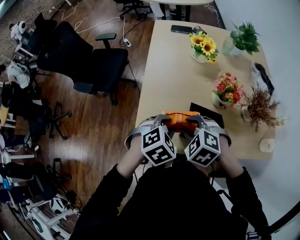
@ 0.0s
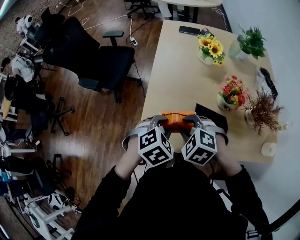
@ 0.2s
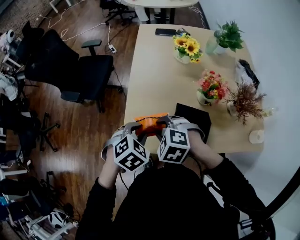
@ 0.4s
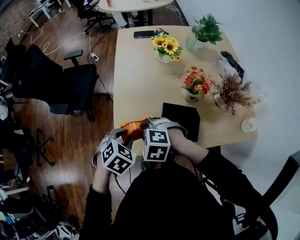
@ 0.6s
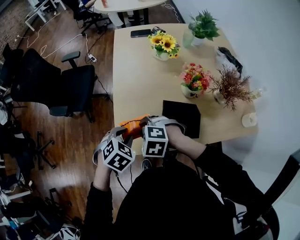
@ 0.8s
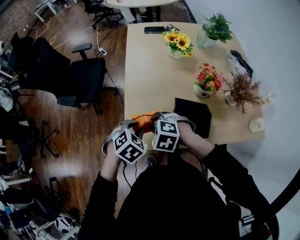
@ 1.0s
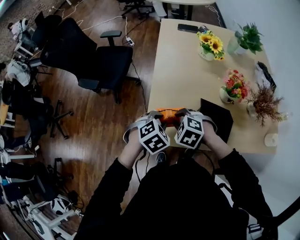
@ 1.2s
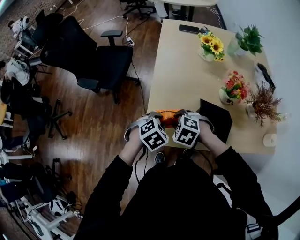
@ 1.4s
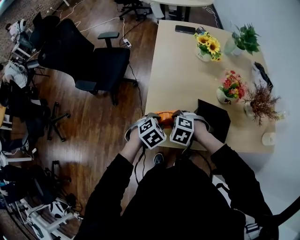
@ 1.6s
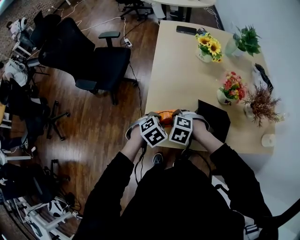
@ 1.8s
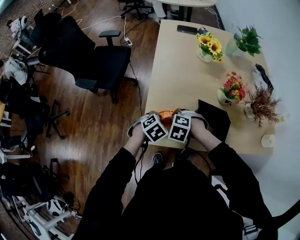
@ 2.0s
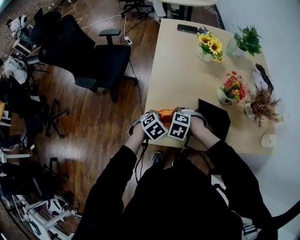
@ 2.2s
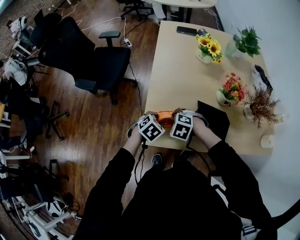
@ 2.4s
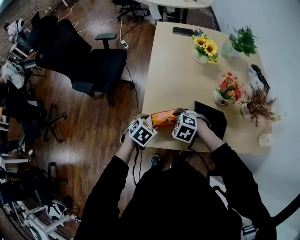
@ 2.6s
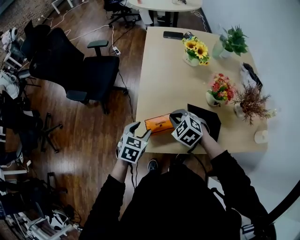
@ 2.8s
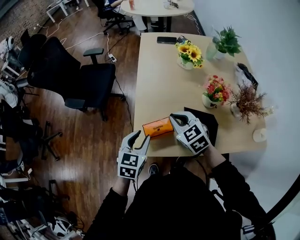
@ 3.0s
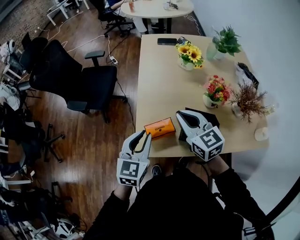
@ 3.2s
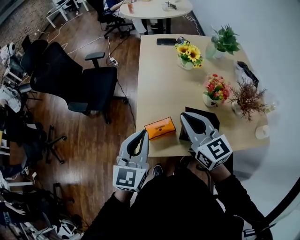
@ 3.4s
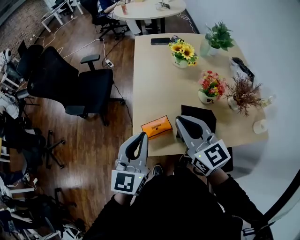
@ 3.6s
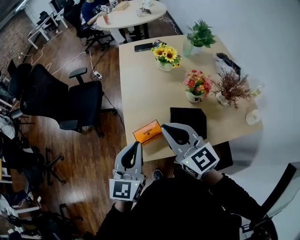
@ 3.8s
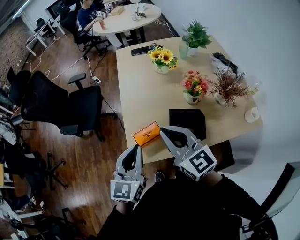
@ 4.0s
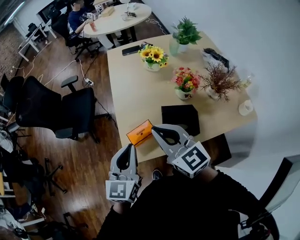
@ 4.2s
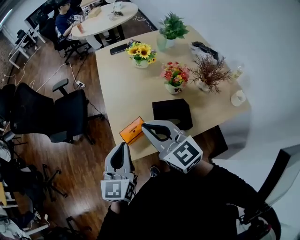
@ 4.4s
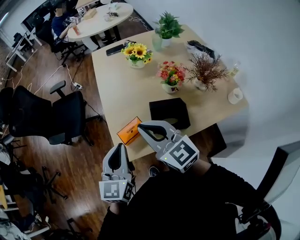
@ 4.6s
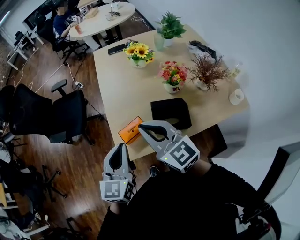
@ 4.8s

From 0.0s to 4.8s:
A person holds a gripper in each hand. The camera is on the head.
From 0.0s to 1.6s: Both grippers travel together downward and to the left, roughly 15 cm.
From 1.6s to 3.2s: The grippers both shift upward by about 20 cm. The left gripper tips its fingers upward by about 40 degrees, and opens, then closes again; the right gripper tips its fingers upward by about 50 degrees, and closes its fingers.
From 3.2s to 4.8s: The left gripper travels upward and backward by approximately 10 cm; the right gripper is displaced backward and upward by about 10 cm.

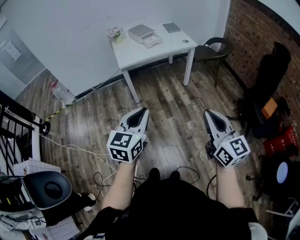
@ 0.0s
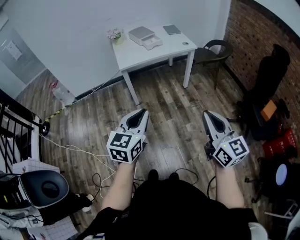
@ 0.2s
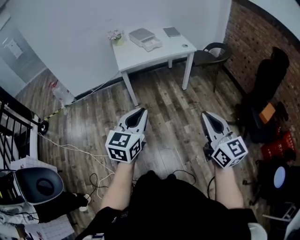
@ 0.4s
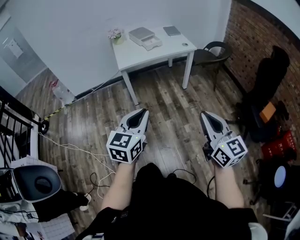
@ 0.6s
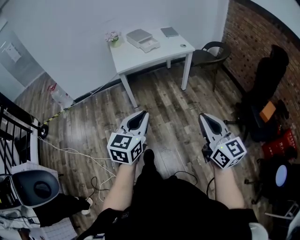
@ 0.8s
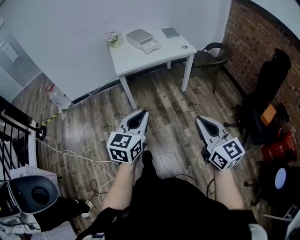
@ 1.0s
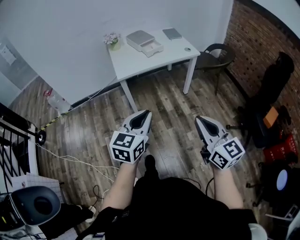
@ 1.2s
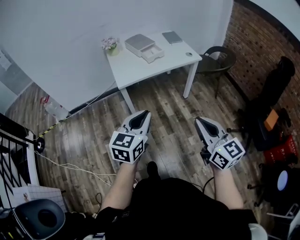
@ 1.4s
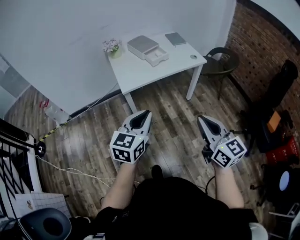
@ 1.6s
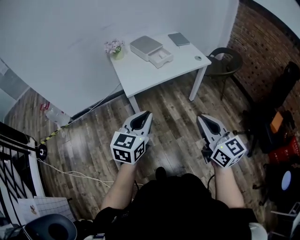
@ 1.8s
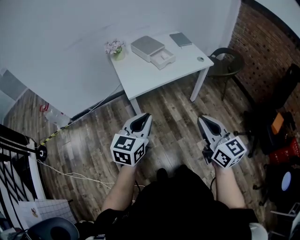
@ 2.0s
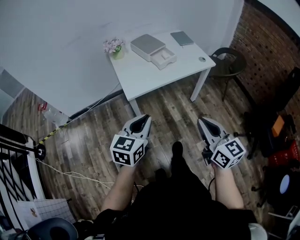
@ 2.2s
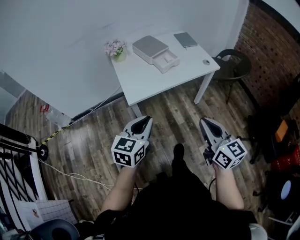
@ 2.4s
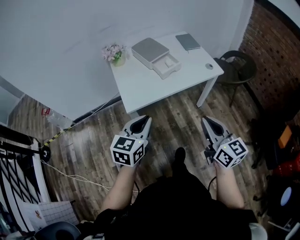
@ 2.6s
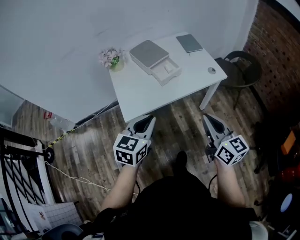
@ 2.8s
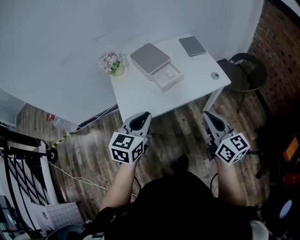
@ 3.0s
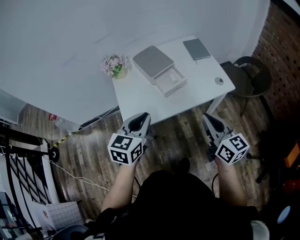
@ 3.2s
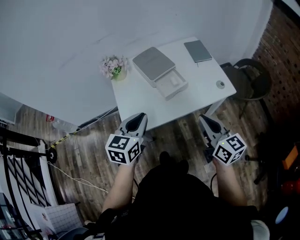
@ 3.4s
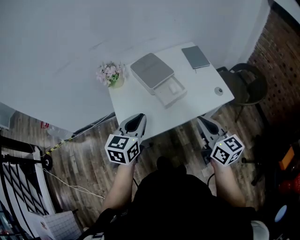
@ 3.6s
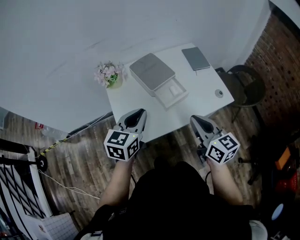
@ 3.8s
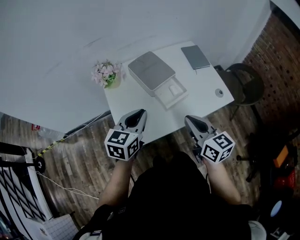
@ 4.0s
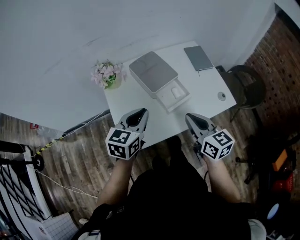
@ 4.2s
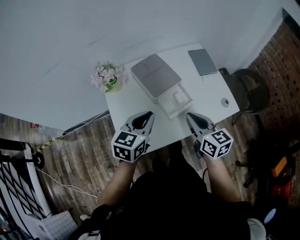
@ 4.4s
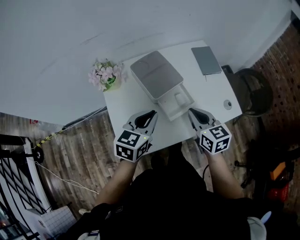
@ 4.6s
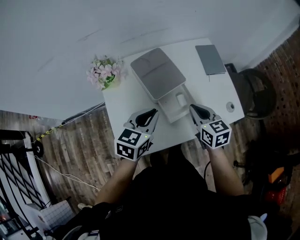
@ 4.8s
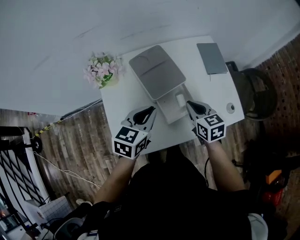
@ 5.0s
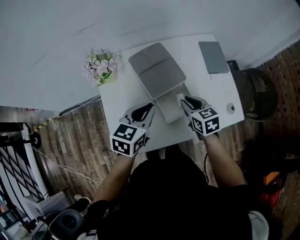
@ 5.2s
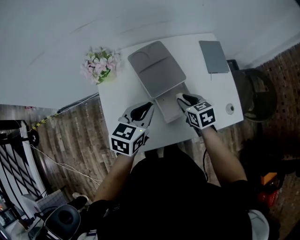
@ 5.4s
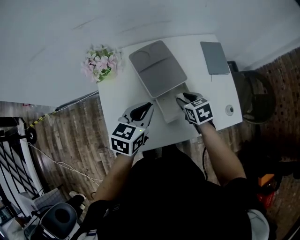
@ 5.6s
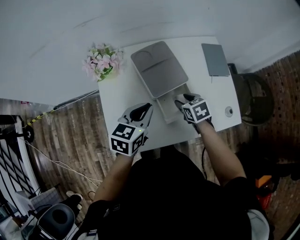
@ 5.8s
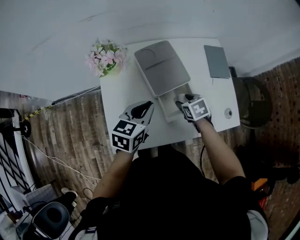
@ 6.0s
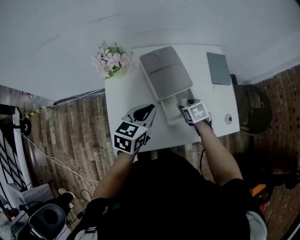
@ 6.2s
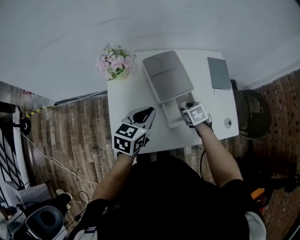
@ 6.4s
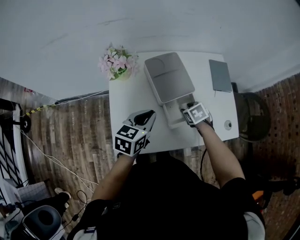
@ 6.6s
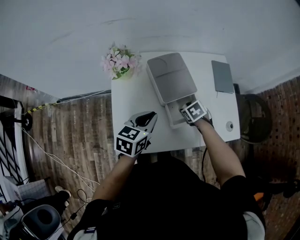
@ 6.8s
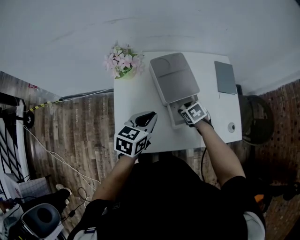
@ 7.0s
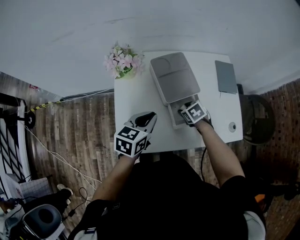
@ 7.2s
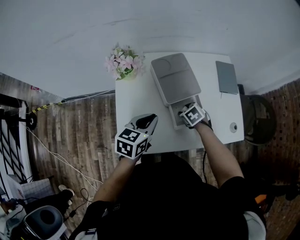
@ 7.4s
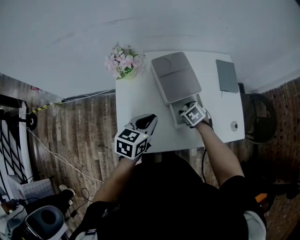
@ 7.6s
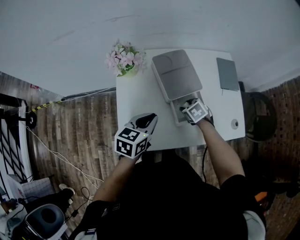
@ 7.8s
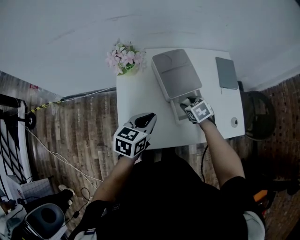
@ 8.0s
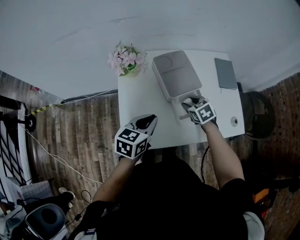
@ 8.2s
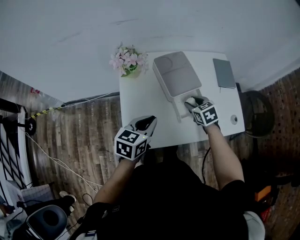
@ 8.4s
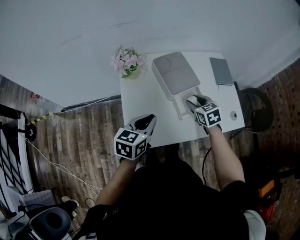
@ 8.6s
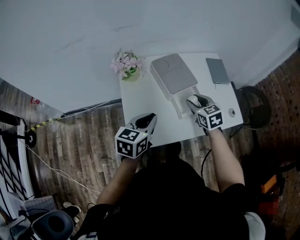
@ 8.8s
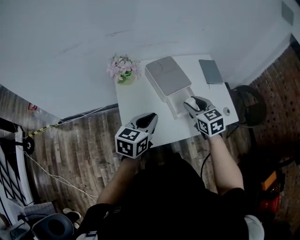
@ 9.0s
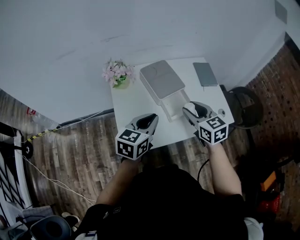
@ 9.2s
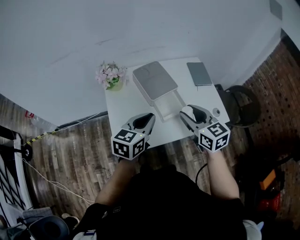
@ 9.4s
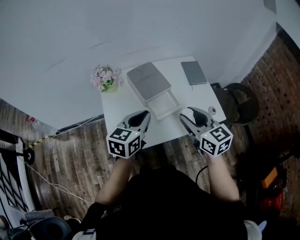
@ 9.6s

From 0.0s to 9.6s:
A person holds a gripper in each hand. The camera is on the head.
From 0.0s to 1.6s: The right gripper is displaced forward and to the left by roughly 25 cm. Meanwhile the left gripper heads forward, covering roughly 25 cm.
From 1.6s to 3.2s: Both grippers move forward, roughly 40 cm.
From 3.2s to 4.8s: The right gripper is displaced forward and downward by roughly 30 cm, and swivels about 30 degrees. Meanwhile the left gripper moves forward, roughly 25 cm.
From 4.8s to 6.4s: The left gripper ends up approximately 5 cm from where it was; the right gripper moves downward, some 15 cm, angles its fingers downward, by some 40 degrees, and opens up.
From 6.4s to 8.0s: The left gripper moves approximately 5 cm, while the right gripper heads to the left, covering approximately 5 cm.
From 8.0s to 9.6s: The right gripper is displaced upward and backward by about 30 cm, and tips its fingers upward by some 40 degrees. The left gripper moves upward, to the right and backward, some 15 cm.

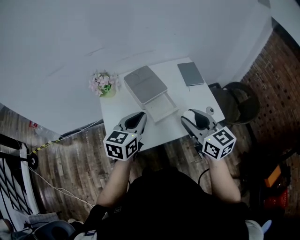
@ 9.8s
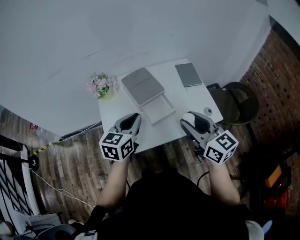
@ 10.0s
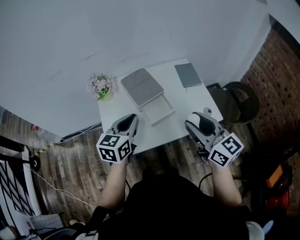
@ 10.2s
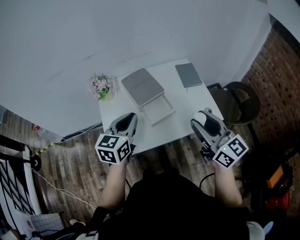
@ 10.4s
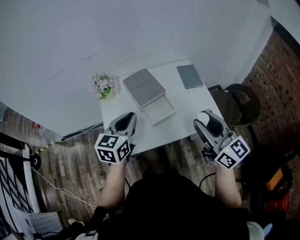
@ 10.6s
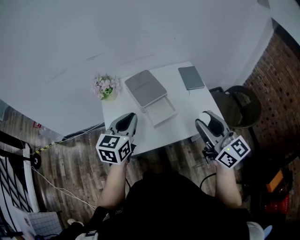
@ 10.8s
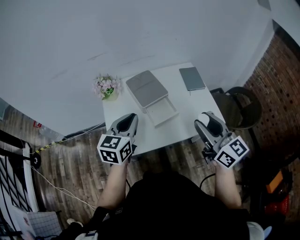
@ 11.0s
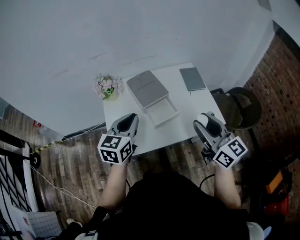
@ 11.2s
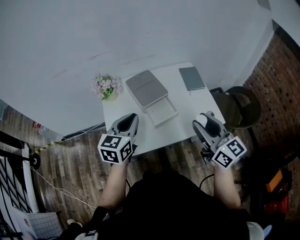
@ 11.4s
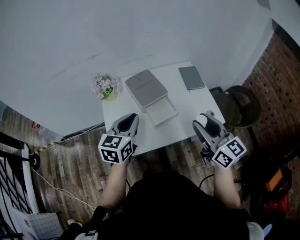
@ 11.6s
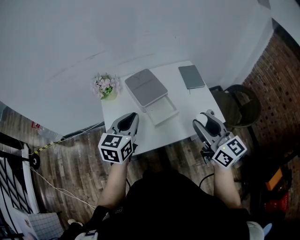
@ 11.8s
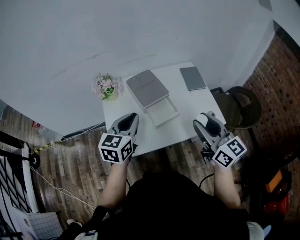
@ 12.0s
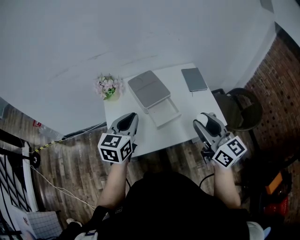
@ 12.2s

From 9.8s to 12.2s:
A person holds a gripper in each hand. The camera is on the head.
From 9.8s to 11.0s: The right gripper moves upward, approximately 5 cm.
From 11.0s to 12.2s: The grippers move only a little.

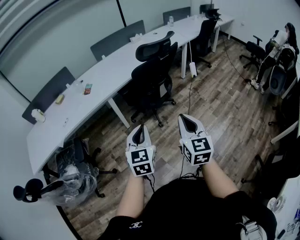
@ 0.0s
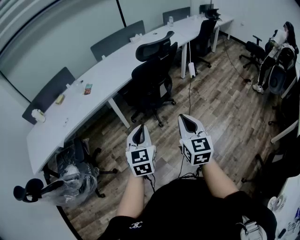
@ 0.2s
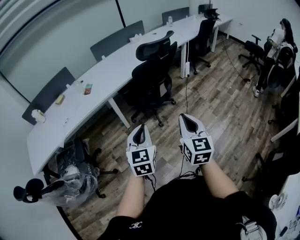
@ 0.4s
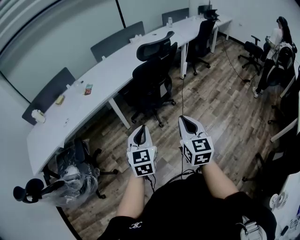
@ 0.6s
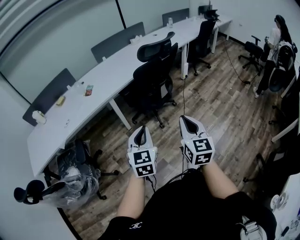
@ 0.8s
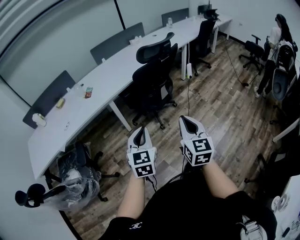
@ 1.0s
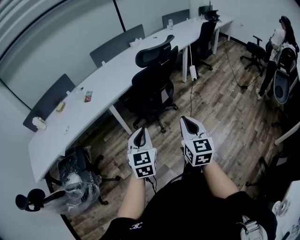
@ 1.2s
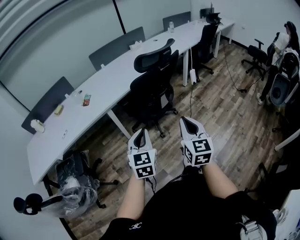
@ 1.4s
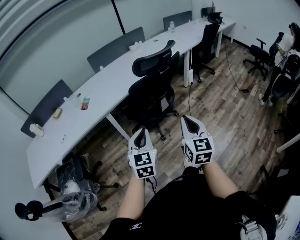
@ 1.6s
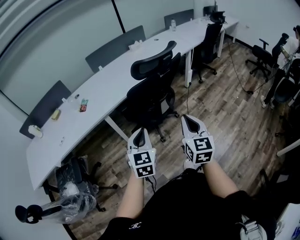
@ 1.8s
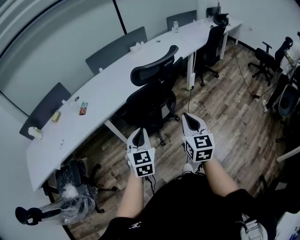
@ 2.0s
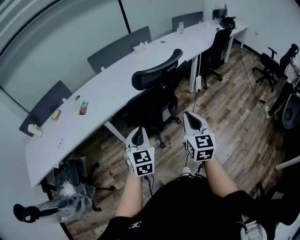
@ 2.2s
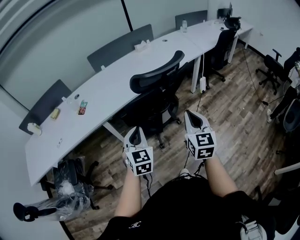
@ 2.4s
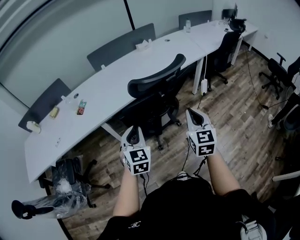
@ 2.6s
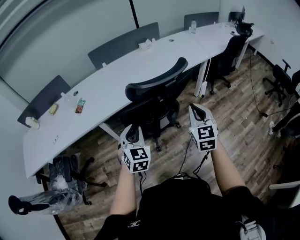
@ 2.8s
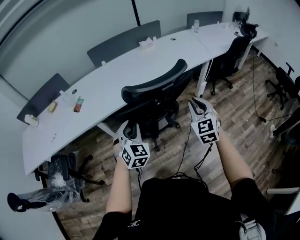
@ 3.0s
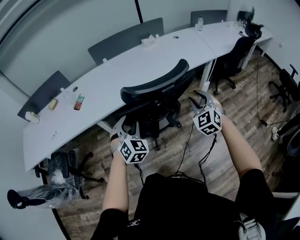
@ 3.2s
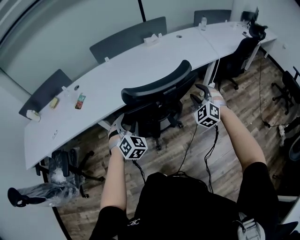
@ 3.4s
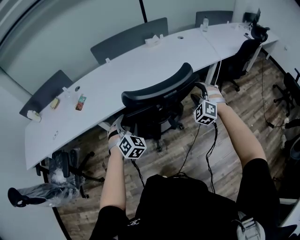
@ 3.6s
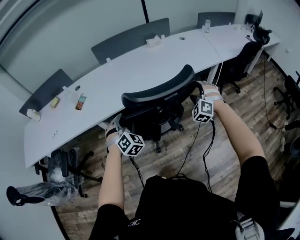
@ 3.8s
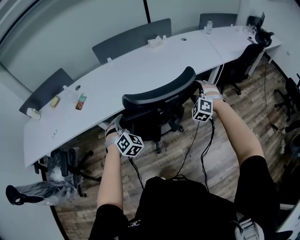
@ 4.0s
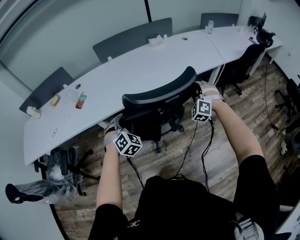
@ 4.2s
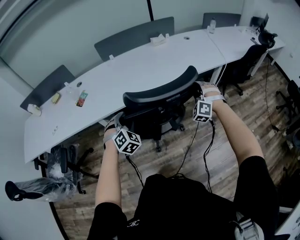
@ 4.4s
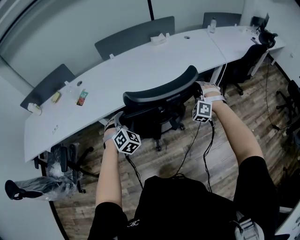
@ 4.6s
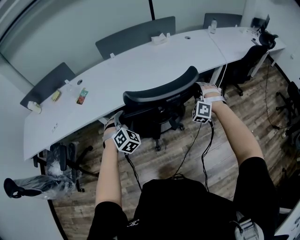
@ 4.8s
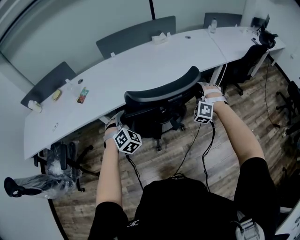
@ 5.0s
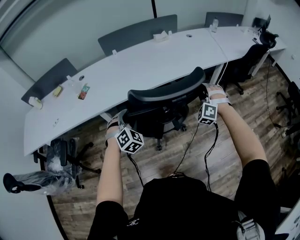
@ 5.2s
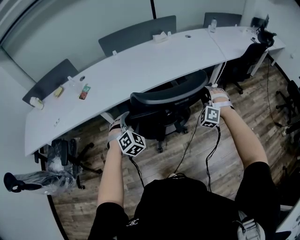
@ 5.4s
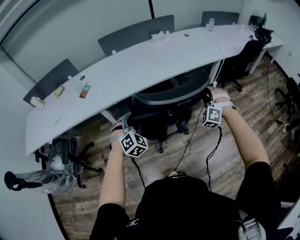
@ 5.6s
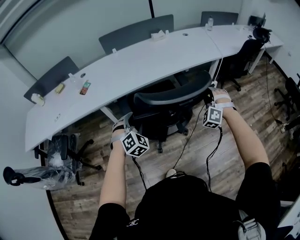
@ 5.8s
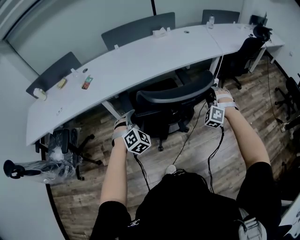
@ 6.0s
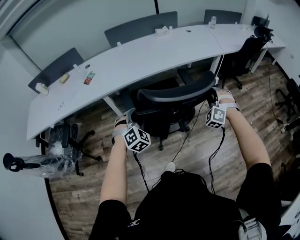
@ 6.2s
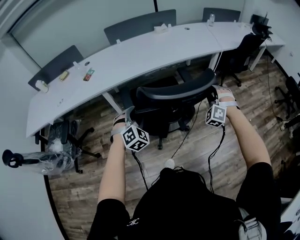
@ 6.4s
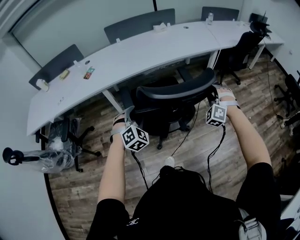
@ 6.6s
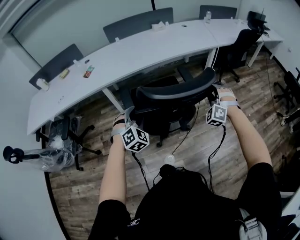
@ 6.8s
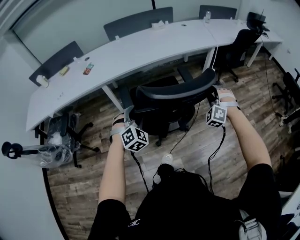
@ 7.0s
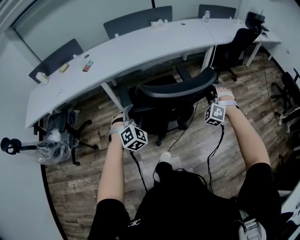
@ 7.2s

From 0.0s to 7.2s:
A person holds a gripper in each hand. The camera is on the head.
From 0.0s to 1.4s: Both grippers move forward, some 10 cm.
From 1.4s to 2.8s: The right gripper goes some 40 cm forward and to the right. Meanwhile the left gripper goes approximately 30 cm forward.
From 2.8s to 4.4s: The right gripper heads forward, covering about 25 cm, rolls counterclockwise, seen from behind, by some 70 degrees, and opens its fingers. The left gripper goes about 15 cm forward and downward, changes its angle by roughly 30 degrees, and opens.
From 4.4s to 5.8s: The two grippers go about 15 cm backward.
From 5.8s to 7.2s: The grippers both shift backward by roughly 20 cm.
